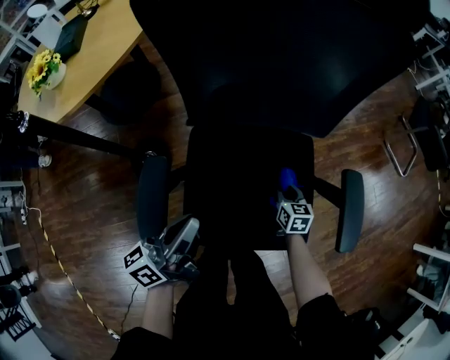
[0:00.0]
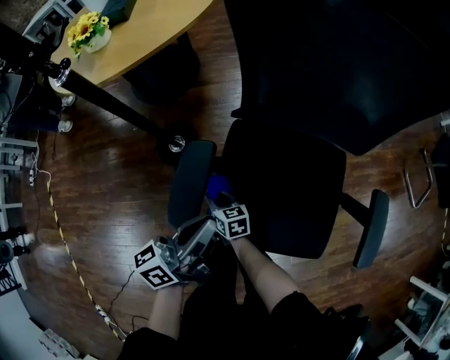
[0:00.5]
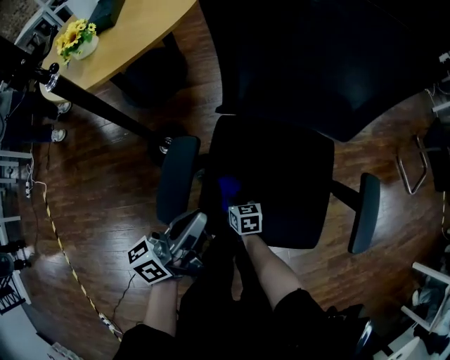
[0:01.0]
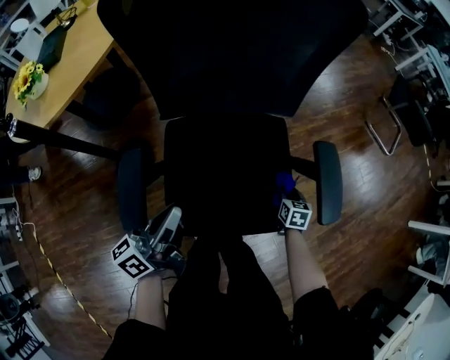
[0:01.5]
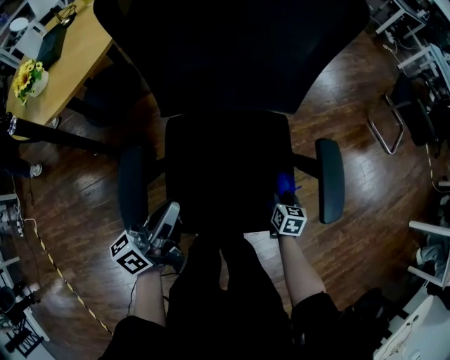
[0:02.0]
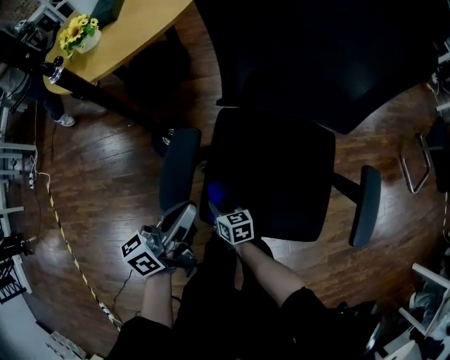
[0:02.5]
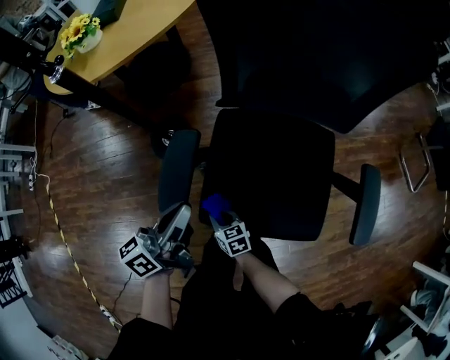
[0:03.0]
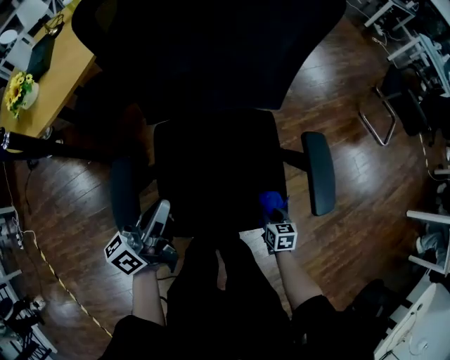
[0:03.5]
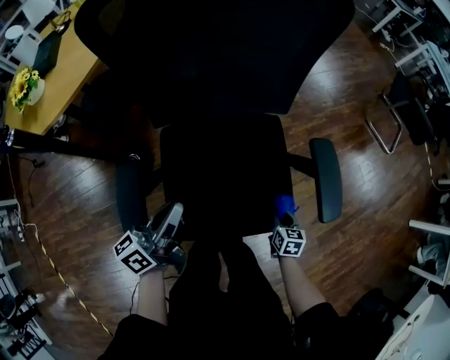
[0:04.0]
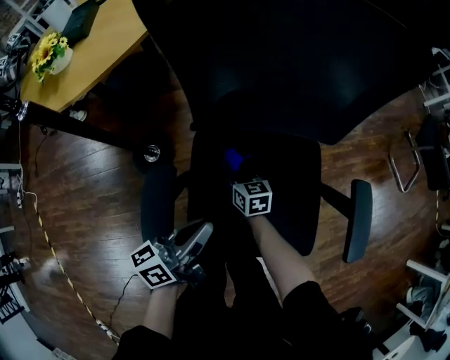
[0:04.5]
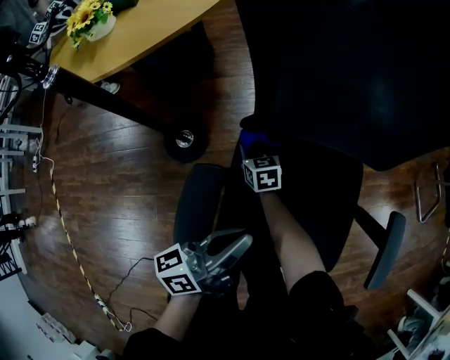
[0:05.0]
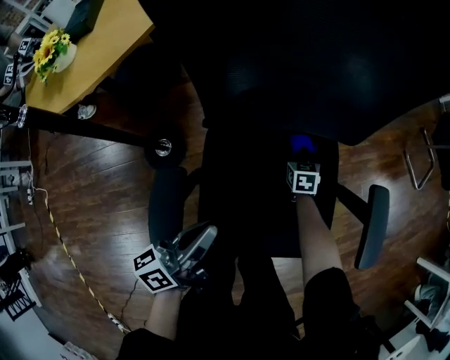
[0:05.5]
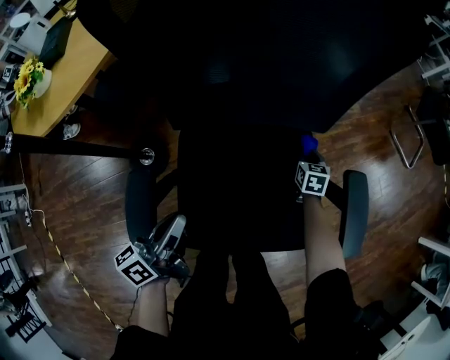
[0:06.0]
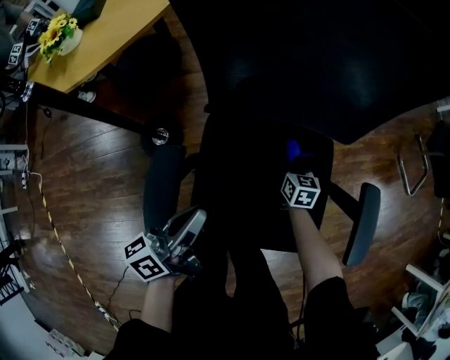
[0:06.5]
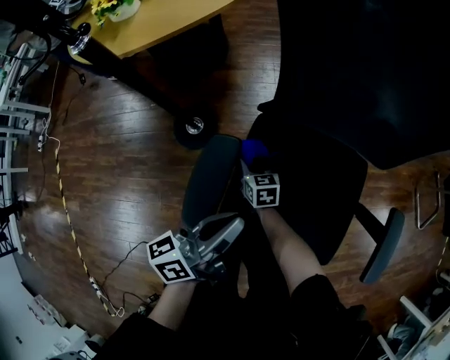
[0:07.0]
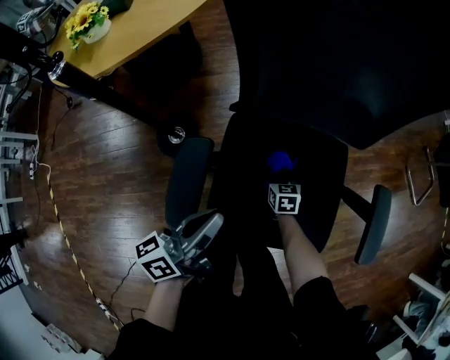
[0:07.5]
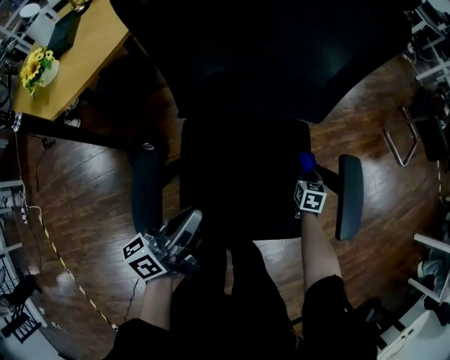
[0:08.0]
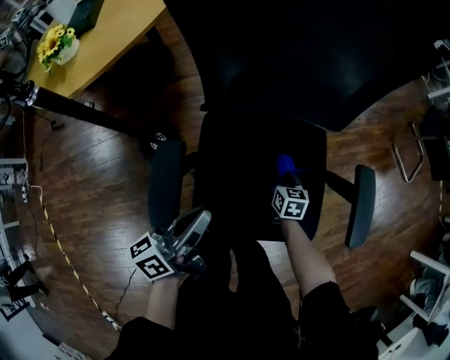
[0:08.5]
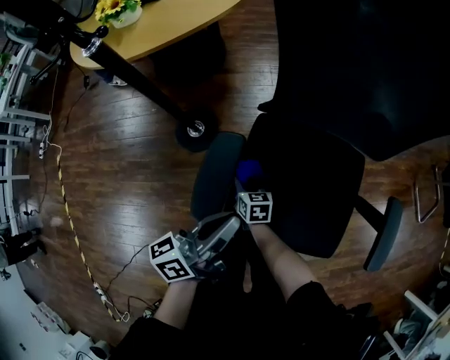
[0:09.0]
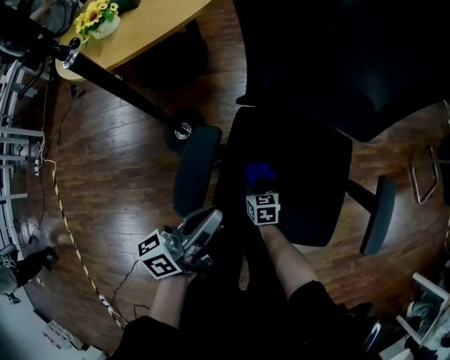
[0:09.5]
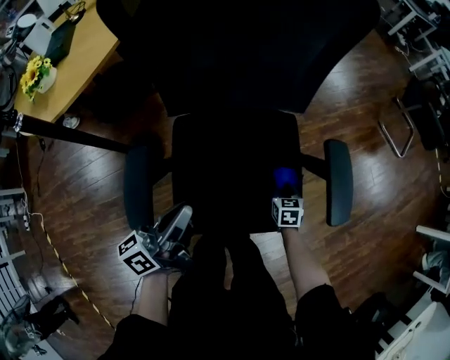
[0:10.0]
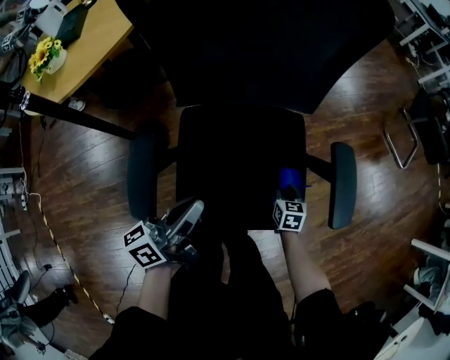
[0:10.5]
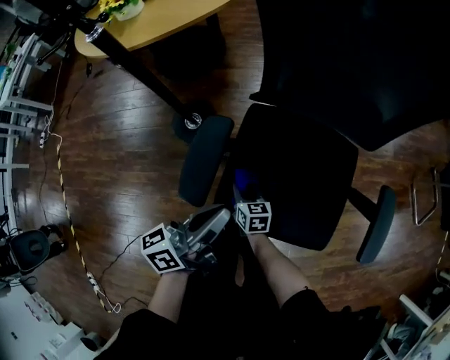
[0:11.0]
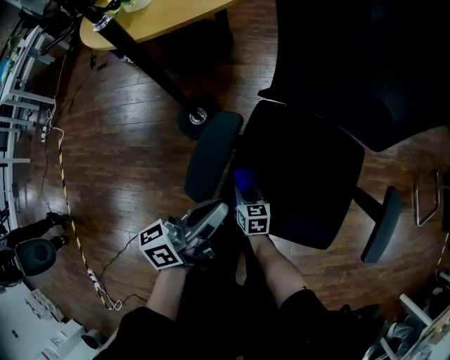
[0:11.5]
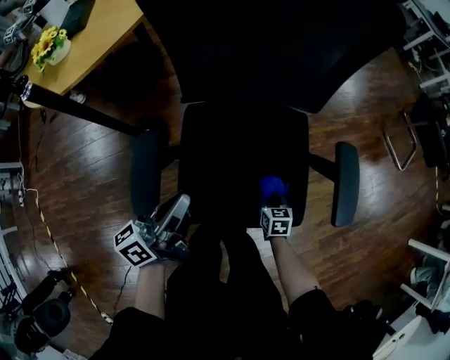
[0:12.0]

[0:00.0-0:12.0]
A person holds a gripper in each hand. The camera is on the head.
0:04.0 to 0:06.0: The left gripper changes place by approximately 5 cm, while the right gripper travels forward by about 30 cm, and travels to the left and back again, roughly 40 cm each way.
0:06.0 to 0:08.0: The left gripper shifts by approximately 5 cm.

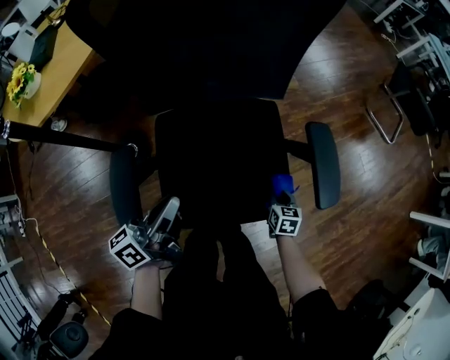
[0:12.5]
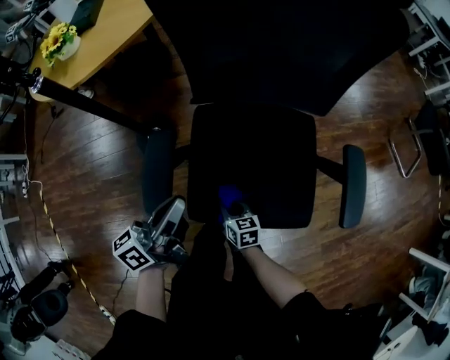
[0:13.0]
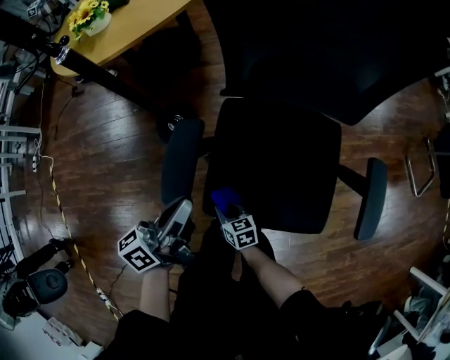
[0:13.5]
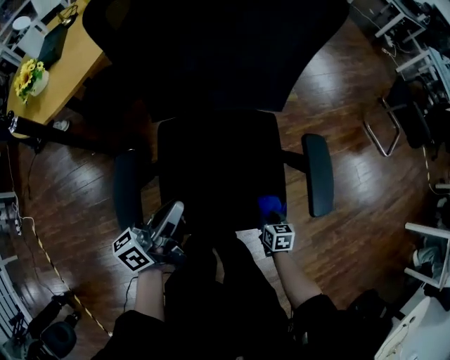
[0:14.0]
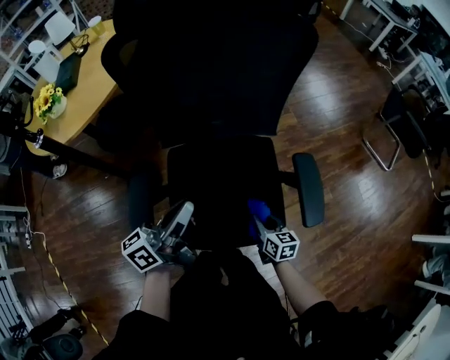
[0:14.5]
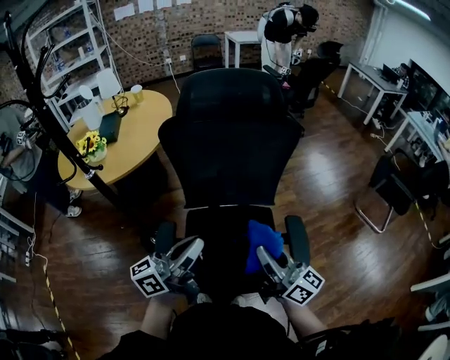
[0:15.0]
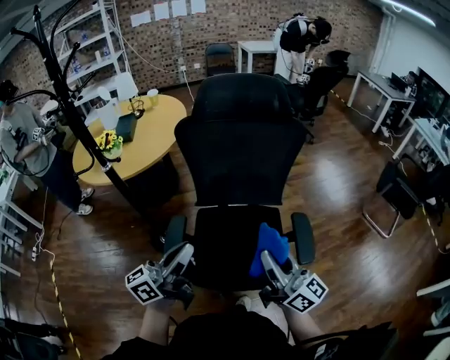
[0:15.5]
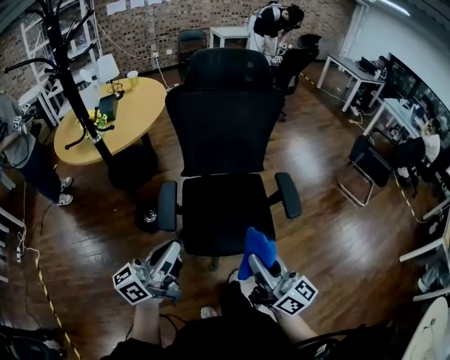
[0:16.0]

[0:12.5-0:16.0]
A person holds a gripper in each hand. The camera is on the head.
0:12.5 to 0:14.5: Both grippers travel together upward, roughly 10 cm. The right gripper swivels some 20 degrees.
0:14.5 to 0:16.0: The right gripper moves upward and backward, roughly 50 cm, and angles its fingers upward, by about 50 degrees. Meanwhile the left gripper goes roughly 30 cm backward and upward.

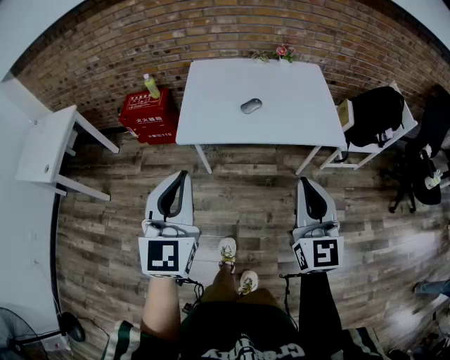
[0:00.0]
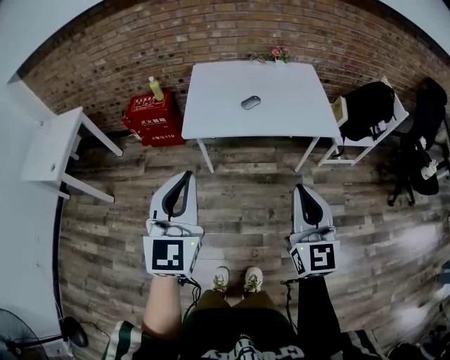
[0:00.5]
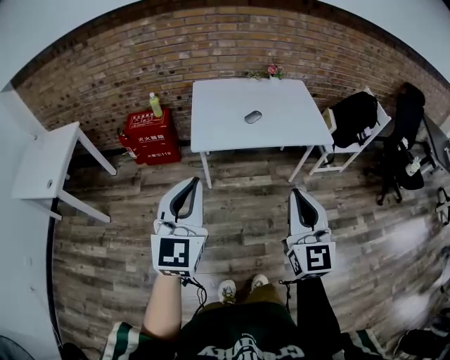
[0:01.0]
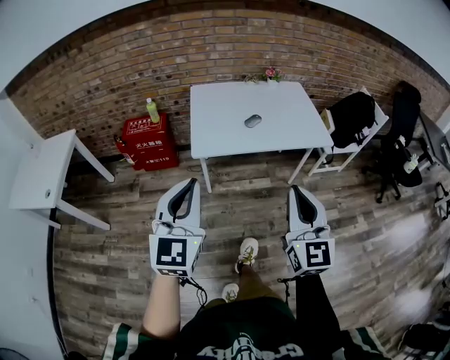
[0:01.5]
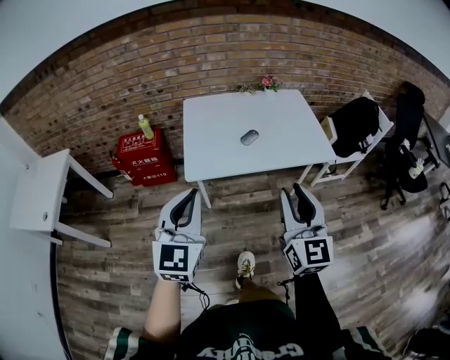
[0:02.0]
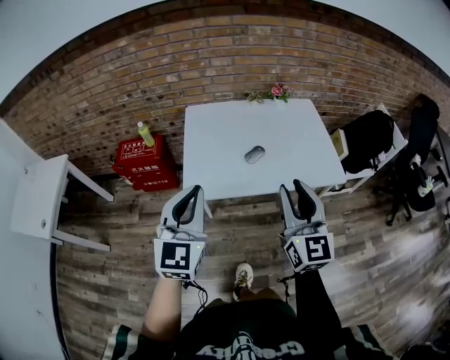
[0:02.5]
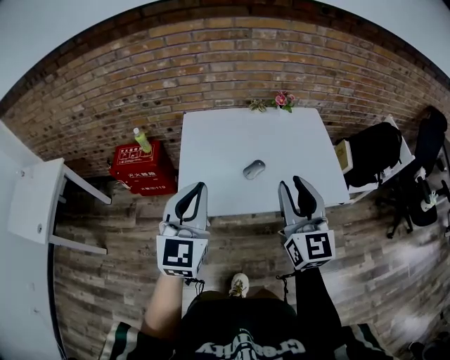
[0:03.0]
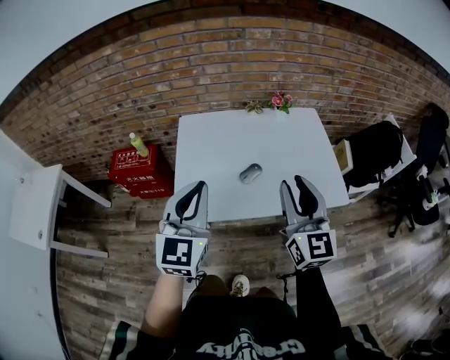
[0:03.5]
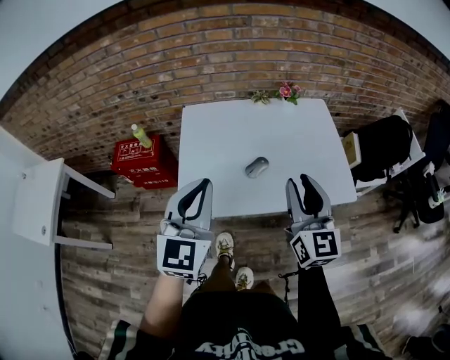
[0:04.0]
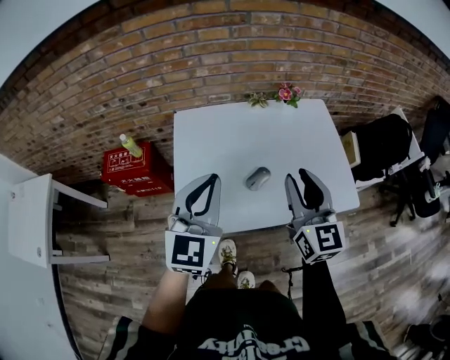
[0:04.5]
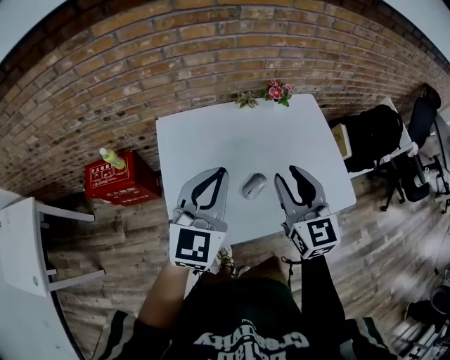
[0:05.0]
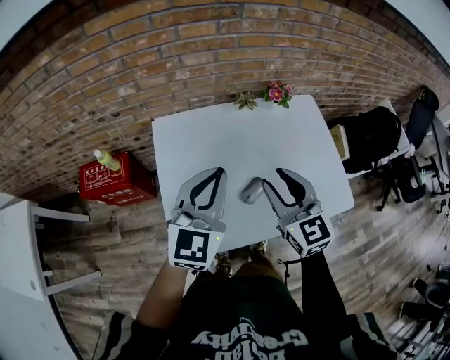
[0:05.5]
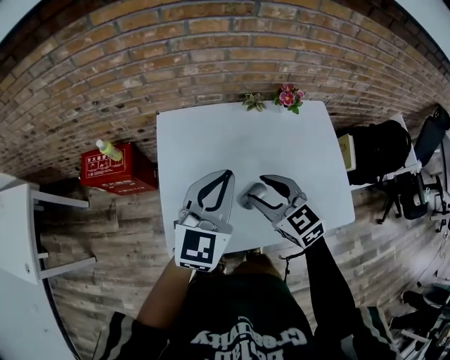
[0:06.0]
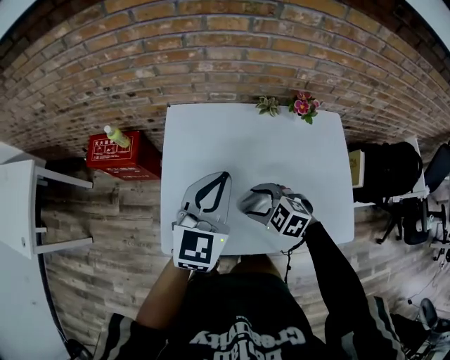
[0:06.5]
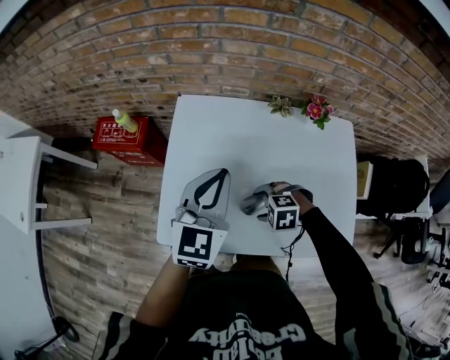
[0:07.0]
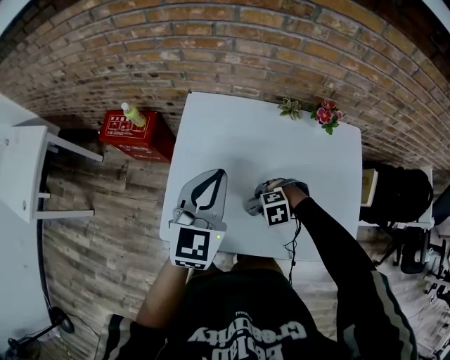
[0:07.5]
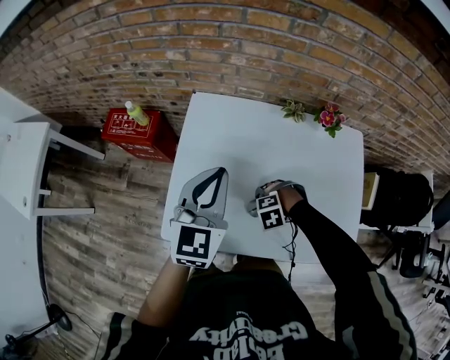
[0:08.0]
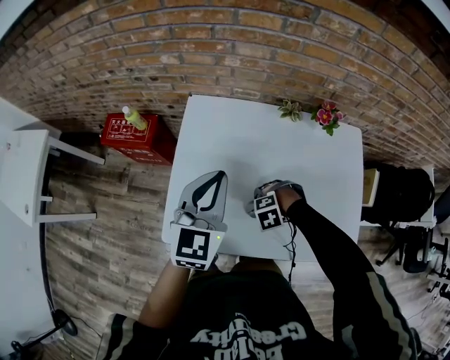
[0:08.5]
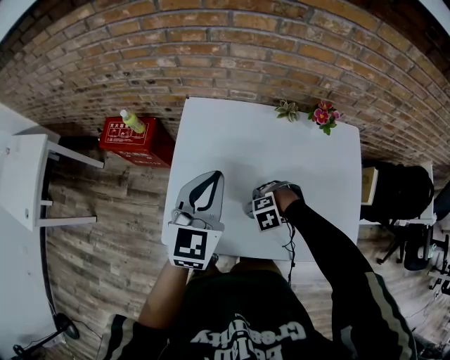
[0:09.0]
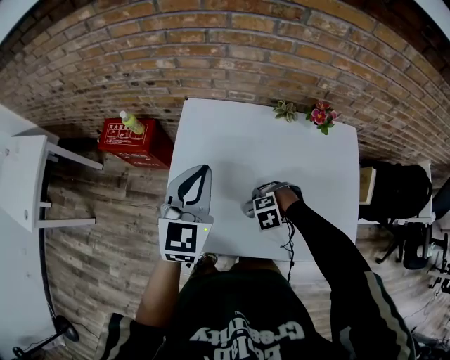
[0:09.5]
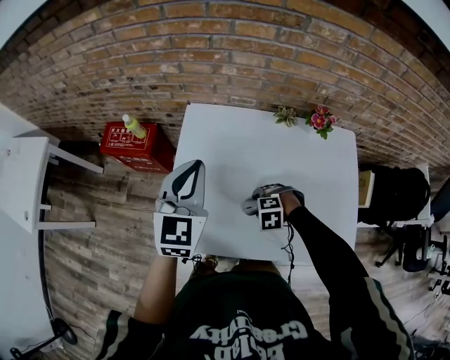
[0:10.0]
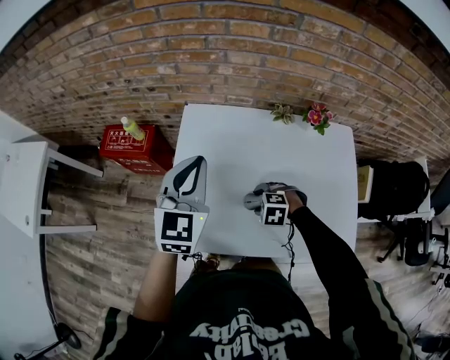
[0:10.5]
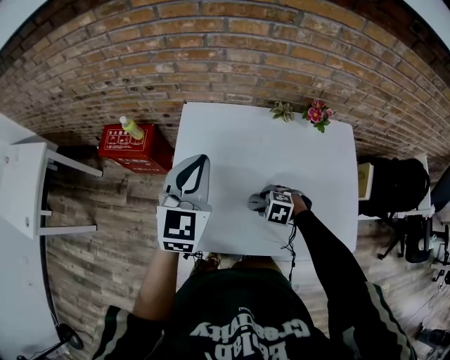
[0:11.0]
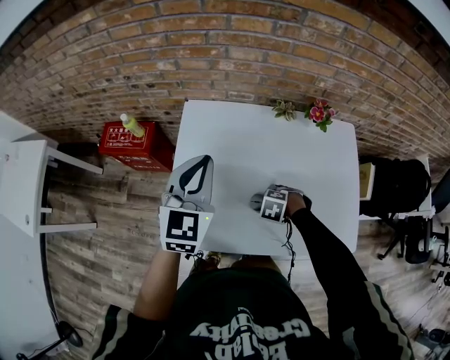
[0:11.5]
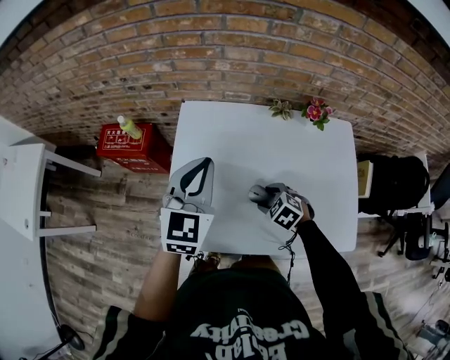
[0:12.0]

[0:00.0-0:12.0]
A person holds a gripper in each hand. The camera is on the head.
0:00.0 to 0:02.0: The grippers both shift to the left by approximately 10 cm. The left gripper travels backward and back again, roughly 10 cm each way. The right gripper travels backward and back again, about 15 cm each way, and opens its fingers.
0:02.0 to 0:04.0: The two grippers go some 30 cm forward.
0:04.0 to 0:06.0: The left gripper shifts some 20 cm forward. The right gripper goes about 25 cm forward, downward and to the left, and angles its fingers downward, by about 30 degrees.
0:06.0 to 0:08.0: The right gripper shifts some 25 cm downward, and points its fingers some 60 degrees further downward; the left gripper changes place by about 5 cm, and swivels roughly 20 degrees.
0:08.0 to 0:10.0: The grippers move only a little.
0:10.0 to 0:12.0: The right gripper rotates roughly 40 degrees.
